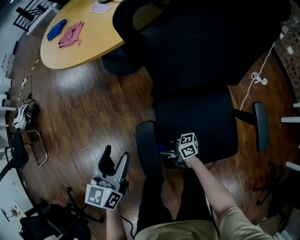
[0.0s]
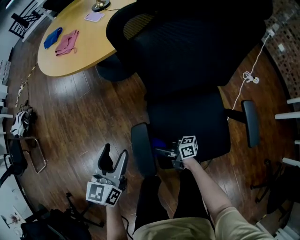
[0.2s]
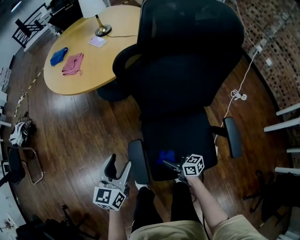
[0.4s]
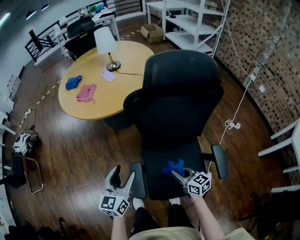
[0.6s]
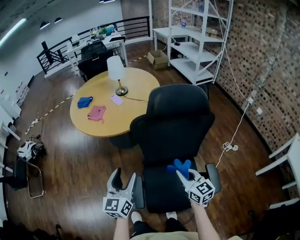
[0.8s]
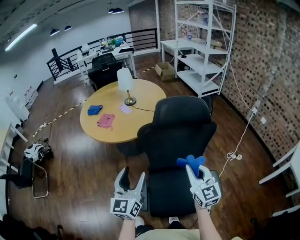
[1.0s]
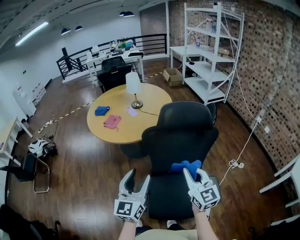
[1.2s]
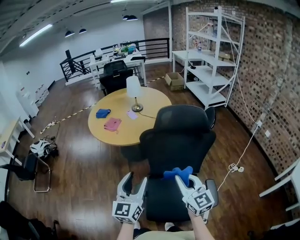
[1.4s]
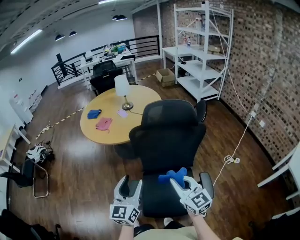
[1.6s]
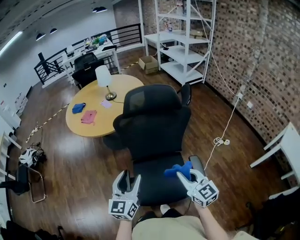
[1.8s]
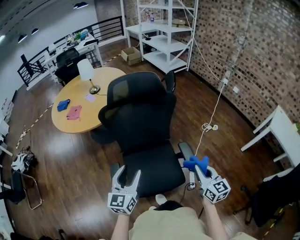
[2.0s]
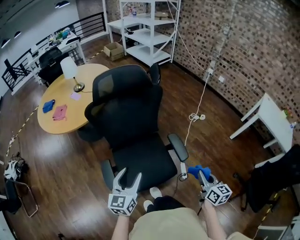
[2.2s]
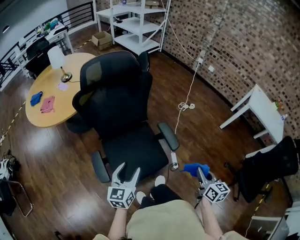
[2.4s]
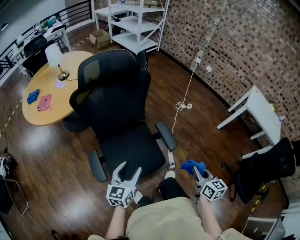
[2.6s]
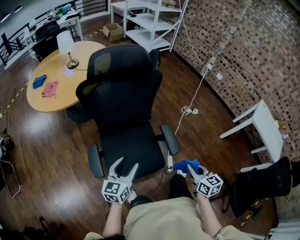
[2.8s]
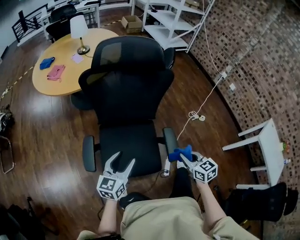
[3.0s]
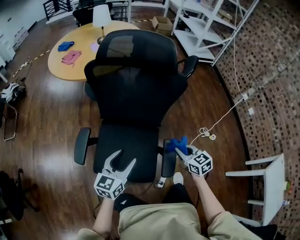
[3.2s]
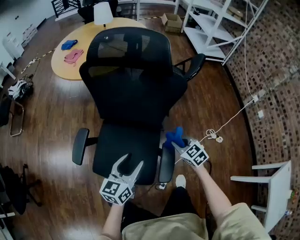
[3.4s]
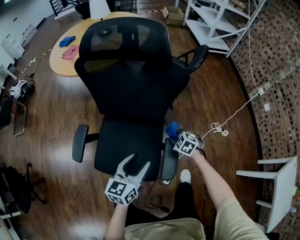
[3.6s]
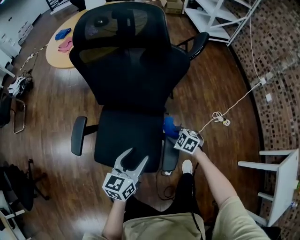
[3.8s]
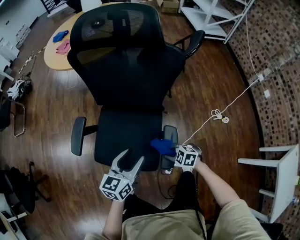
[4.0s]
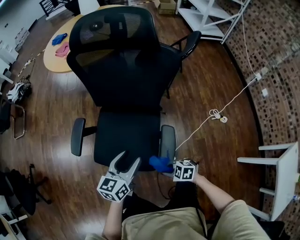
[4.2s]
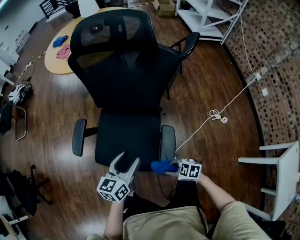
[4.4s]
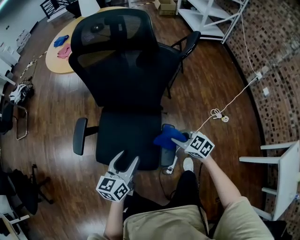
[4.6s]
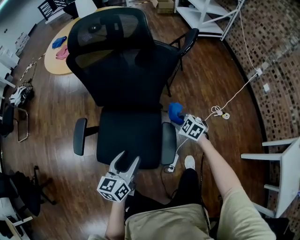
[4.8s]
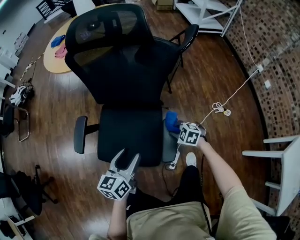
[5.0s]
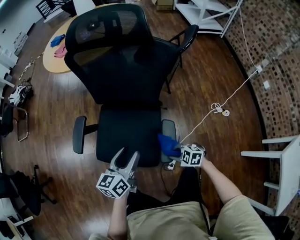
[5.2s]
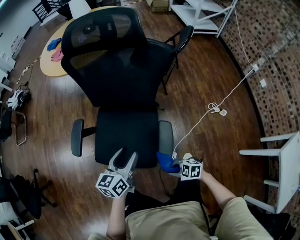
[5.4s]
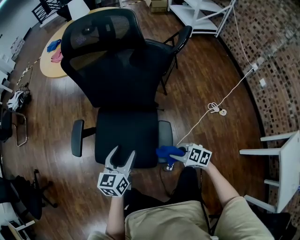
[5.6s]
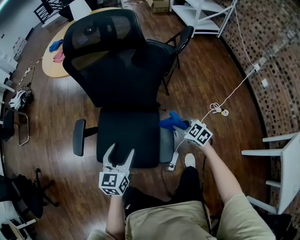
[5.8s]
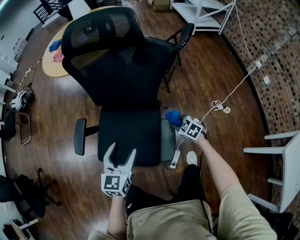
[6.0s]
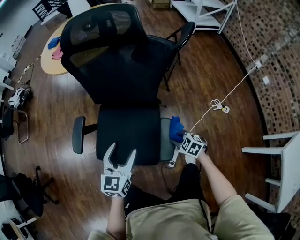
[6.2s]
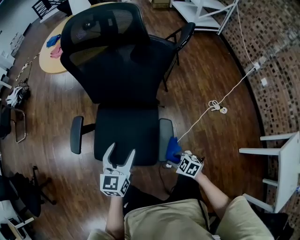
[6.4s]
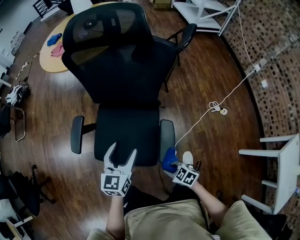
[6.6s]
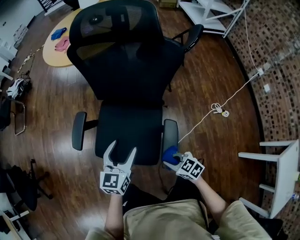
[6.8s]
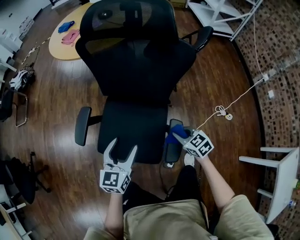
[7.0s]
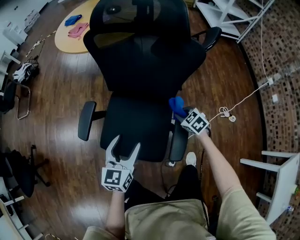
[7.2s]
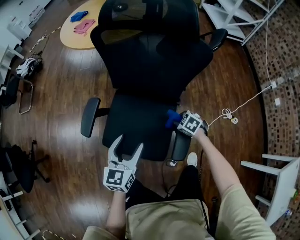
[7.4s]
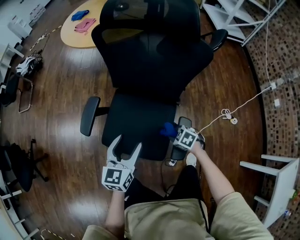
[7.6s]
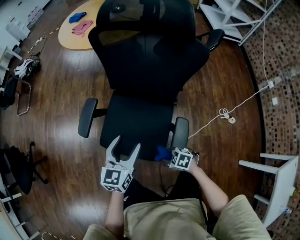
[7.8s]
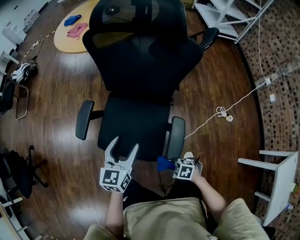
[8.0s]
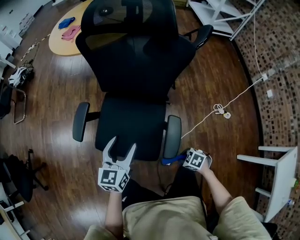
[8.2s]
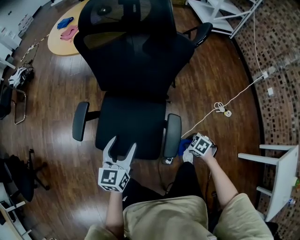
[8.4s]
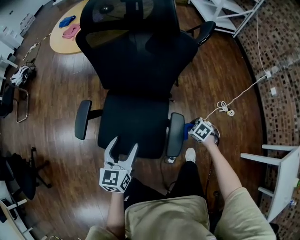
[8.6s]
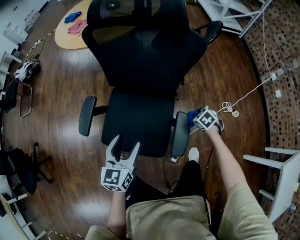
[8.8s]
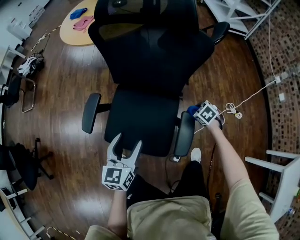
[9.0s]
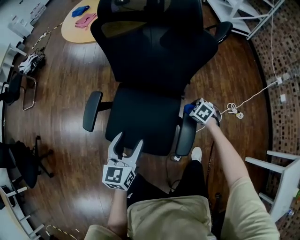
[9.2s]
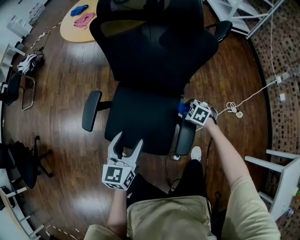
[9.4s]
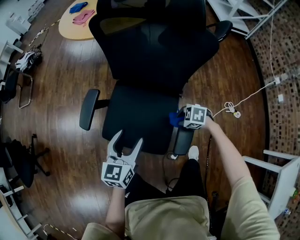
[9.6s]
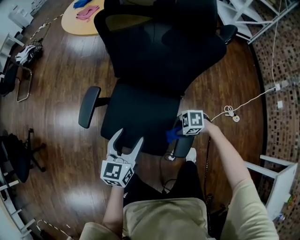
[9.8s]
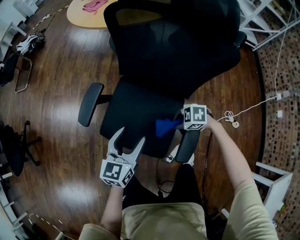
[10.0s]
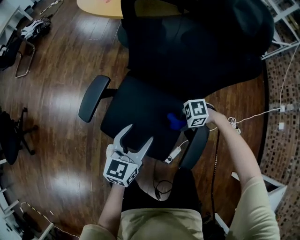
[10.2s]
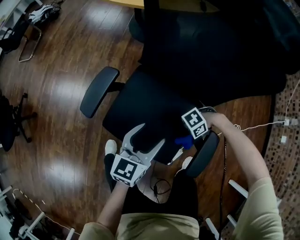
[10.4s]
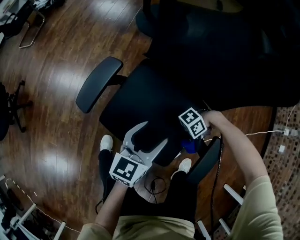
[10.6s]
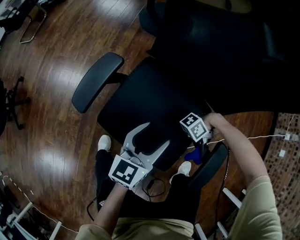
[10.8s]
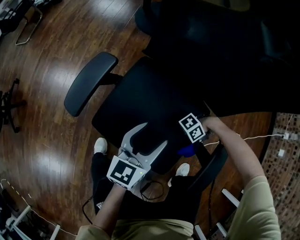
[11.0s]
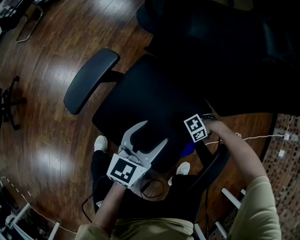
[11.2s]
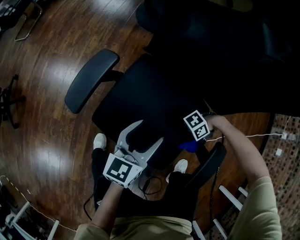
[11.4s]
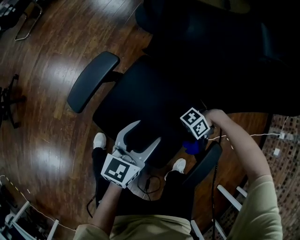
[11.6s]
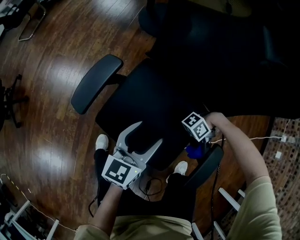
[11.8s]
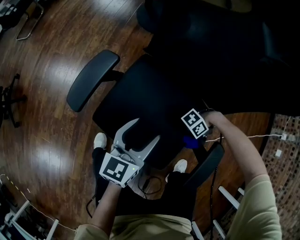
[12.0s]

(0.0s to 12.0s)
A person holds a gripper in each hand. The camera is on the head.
0.0s - 1.6s: Both grippers travel together upward, roughly 40 cm. The right gripper rotates about 80 degrees; the left gripper changes its angle by roughly 30 degrees.
1.6s - 3.0s: The right gripper shifts by about 35 cm, and angles its fingers downward, by some 30 degrees, while the left gripper goes roughly 20 cm downward, and rotates roughly 30 degrees.
3.0s - 4.4s: The right gripper travels downward by about 20 cm, and turns by about 70 degrees, while the left gripper shifts by some 15 cm, and changes its angle by approximately 20 degrees.
4.4s - 6.0s: The left gripper turns by roughly 20 degrees. The right gripper moves up and down over about 10 cm, changing direction 3 times, and rotates approximately 30 degrees.
6.0s - 7.6s: The right gripper moves forward and backward over some 25 cm, changing direction 2 times, and swivels about 20 degrees, while the left gripper shifts approximately 5 cm to the left.
7.6s - 9.0s: The right gripper shifts by approximately 20 cm, and changes its angle by some 20 degrees.
9.0s - 10.4s: The right gripper shifts by roughly 15 cm, and angles its fingers upward, by some 40 degrees. Meanwhile the left gripper shifts roughly 10 cm downward.
10.4s - 12.0s: The right gripper moves up and down over about 15 cm, changing direction 2 times, and swivels roughly 20 degrees; the left gripper travels downward by approximately 5 cm.

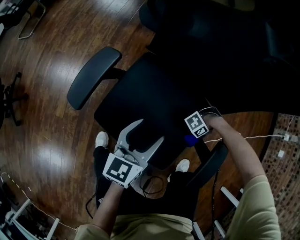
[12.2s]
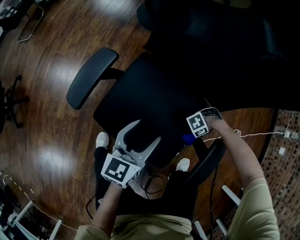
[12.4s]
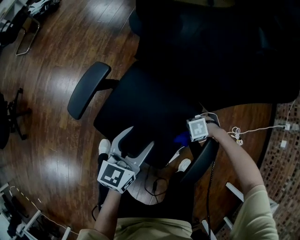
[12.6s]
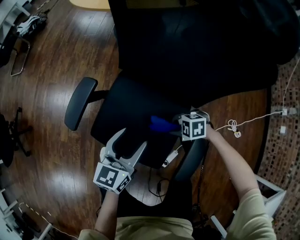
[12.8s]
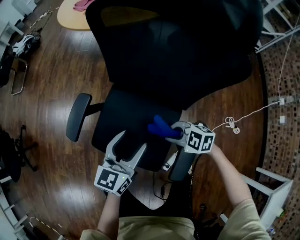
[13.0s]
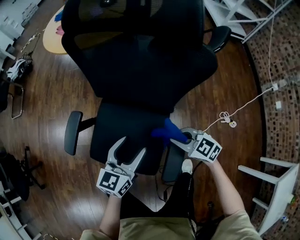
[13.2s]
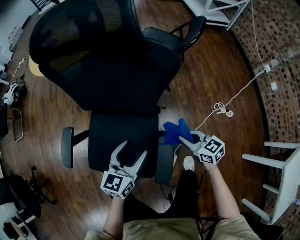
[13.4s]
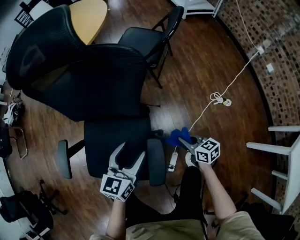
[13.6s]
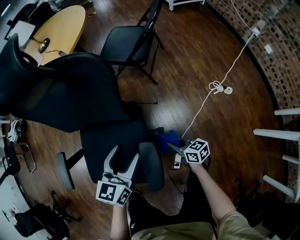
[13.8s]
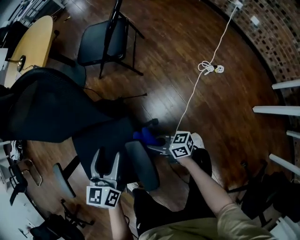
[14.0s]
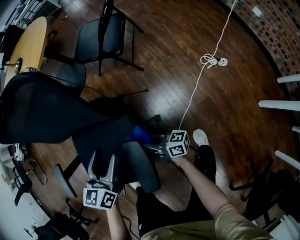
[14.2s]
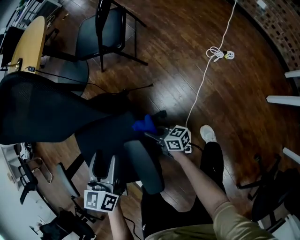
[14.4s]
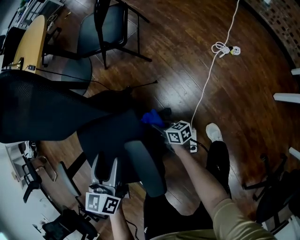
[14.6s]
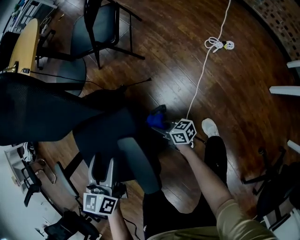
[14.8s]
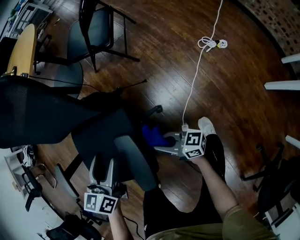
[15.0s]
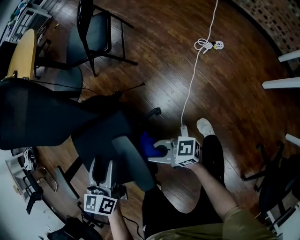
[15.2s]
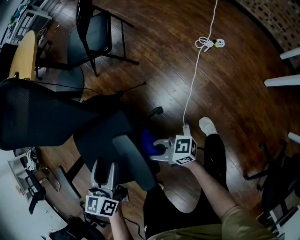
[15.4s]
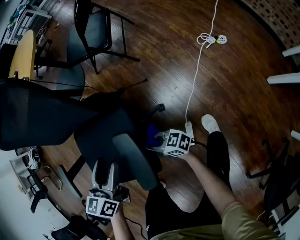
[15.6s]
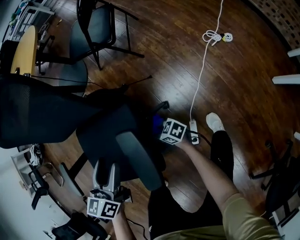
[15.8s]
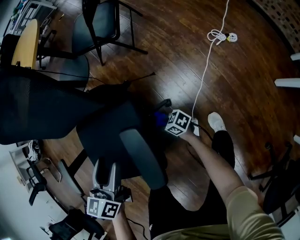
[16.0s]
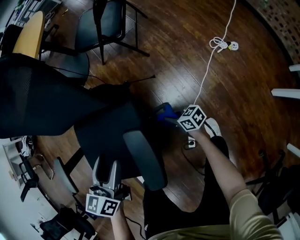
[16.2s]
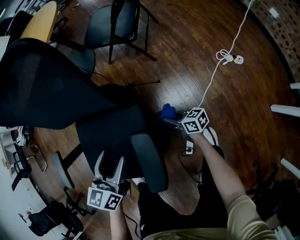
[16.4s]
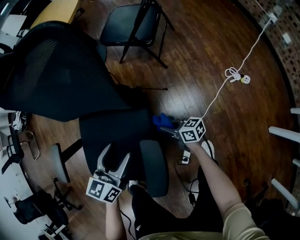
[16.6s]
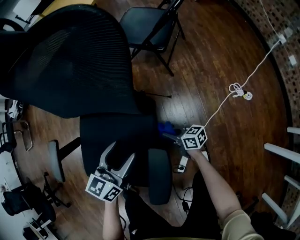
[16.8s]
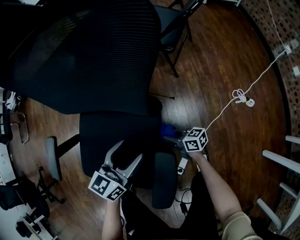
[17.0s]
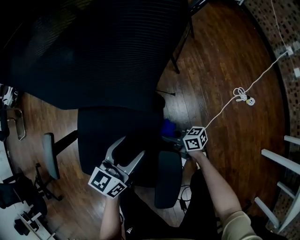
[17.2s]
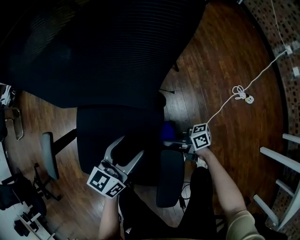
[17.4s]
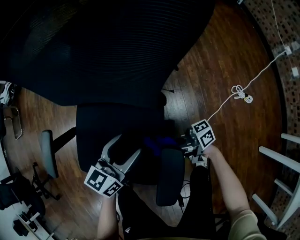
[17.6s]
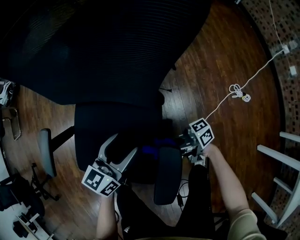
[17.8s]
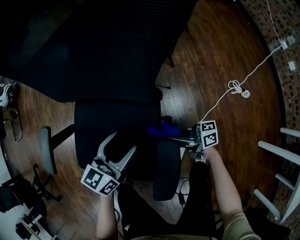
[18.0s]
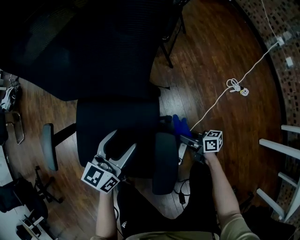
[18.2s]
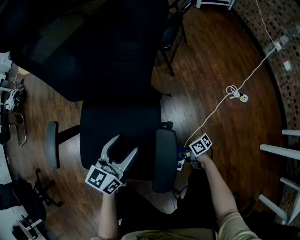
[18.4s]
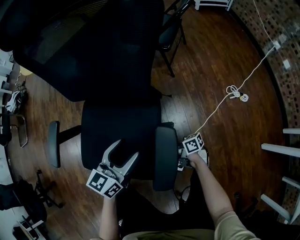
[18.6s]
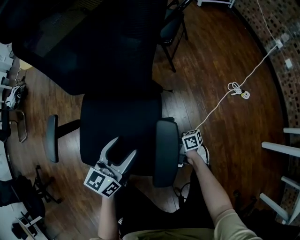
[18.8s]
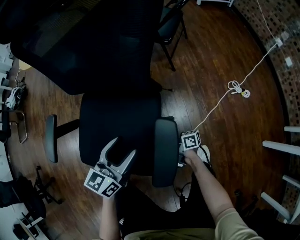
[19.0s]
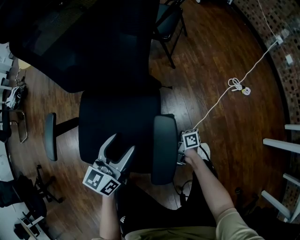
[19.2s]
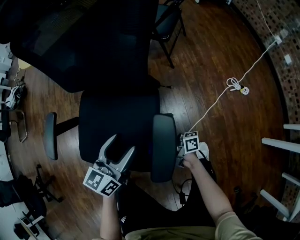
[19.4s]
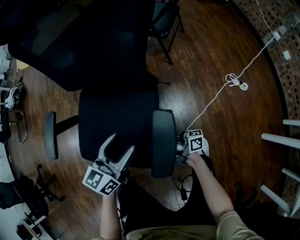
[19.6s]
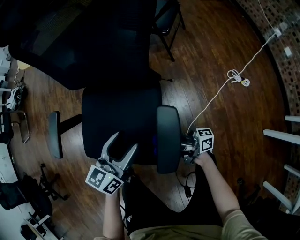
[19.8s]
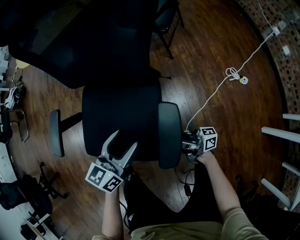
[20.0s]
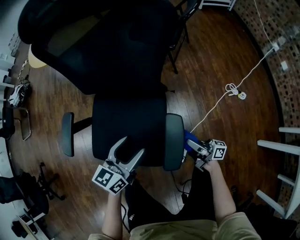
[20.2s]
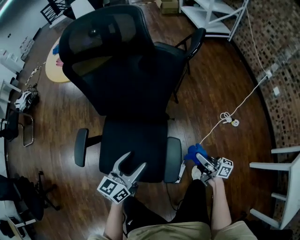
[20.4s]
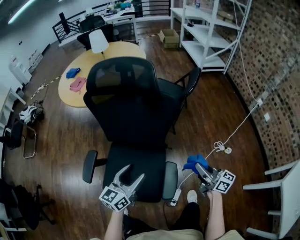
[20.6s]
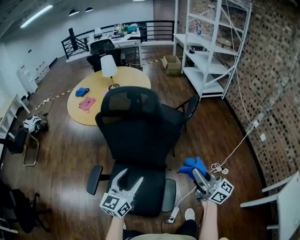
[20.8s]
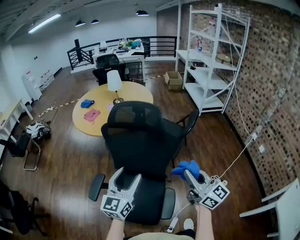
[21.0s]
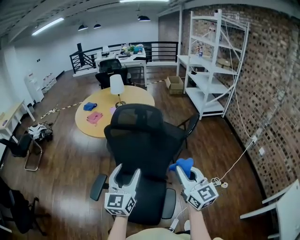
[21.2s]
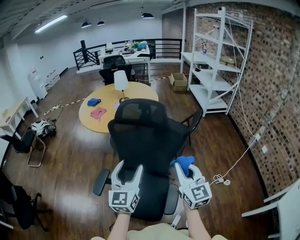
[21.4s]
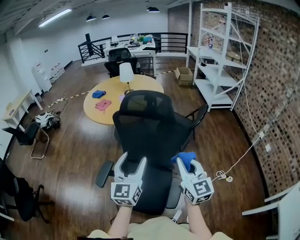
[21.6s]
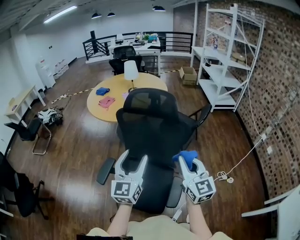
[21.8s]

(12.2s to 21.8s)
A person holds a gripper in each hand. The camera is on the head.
12.2s - 13.8s: The right gripper shifts roughly 15 cm upward, and turns by approximately 160 degrees. Meanwhile the left gripper ends up some 30 cm from where it was, and swivels approximately 30 degrees.
13.8s - 15.4s: The left gripper is displaced downward and backward by approximately 10 cm. The right gripper heads to the left and backward, covering roughly 10 cm, travels downward and back again, some 15 cm each way, and points its fingers about 30 degrees further upward.
15.4s - 17.0s: The right gripper shifts about 20 cm downward and forward, and changes its angle by roughly 30 degrees. The left gripper shifts roughly 10 cm forward.
17.0s - 18.6s: The right gripper moves roughly 15 cm upward and comes back, and turns by approximately 20 degrees. The left gripper moves approximately 10 cm.
18.6s - 20.2s: The right gripper moves upward and to the right, about 20 cm, and turns by about 40 degrees. Meanwhile the left gripper goes roughly 5 cm upward.
20.2s - 21.8s: Both grippers move upward, about 40 cm. The right gripper rotates around the line of its fingers by some 80 degrees, counterclockwise from behind. Meanwhile the left gripper changes its angle by roughly 40 degrees.

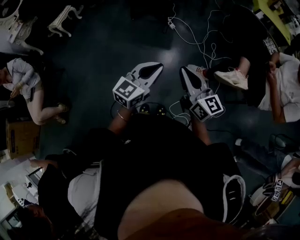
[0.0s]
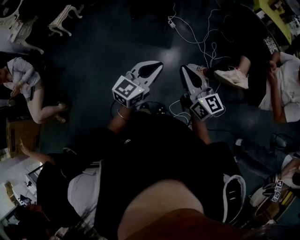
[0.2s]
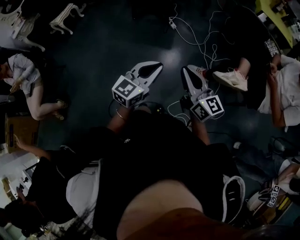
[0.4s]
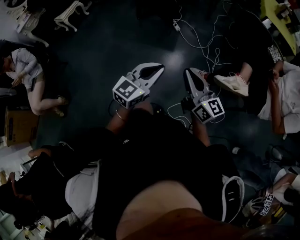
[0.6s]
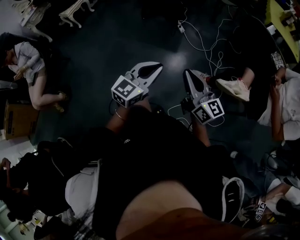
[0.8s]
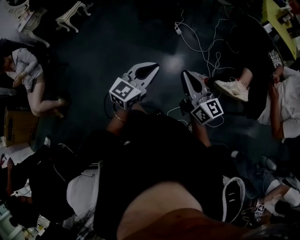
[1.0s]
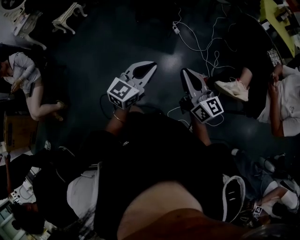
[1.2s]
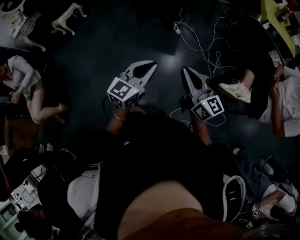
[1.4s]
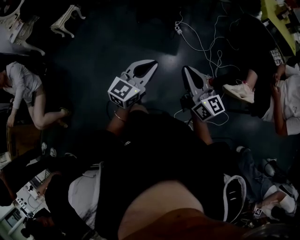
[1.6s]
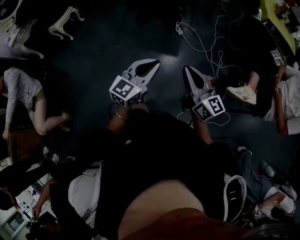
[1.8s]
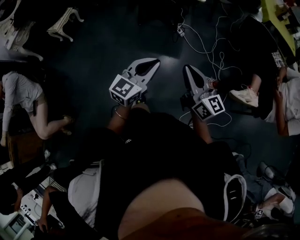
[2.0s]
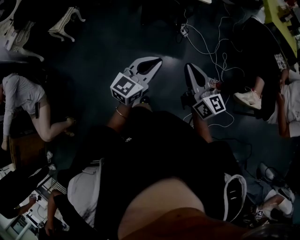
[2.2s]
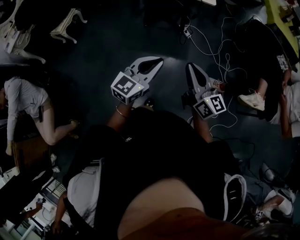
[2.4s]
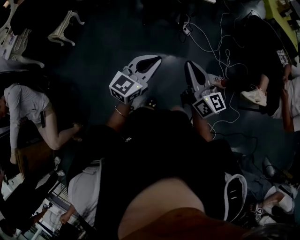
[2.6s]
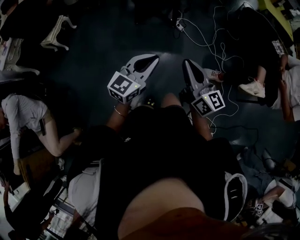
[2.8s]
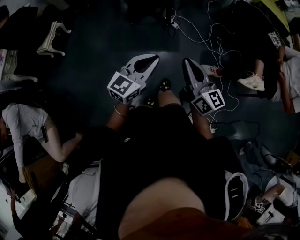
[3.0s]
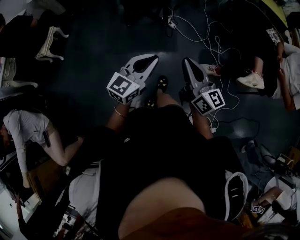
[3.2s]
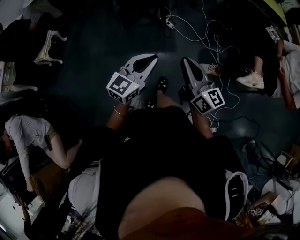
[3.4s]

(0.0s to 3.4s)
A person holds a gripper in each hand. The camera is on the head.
0.0s - 1.6s: The right gripper heads forward and to the left, covering roughly 10 cm, while the left gripper shifts roughly 10 cm to the left and forward.
1.6s - 3.4s: The left gripper shifts some 20 cm forward and to the left, while the right gripper shifts some 20 cm to the left and forward.
